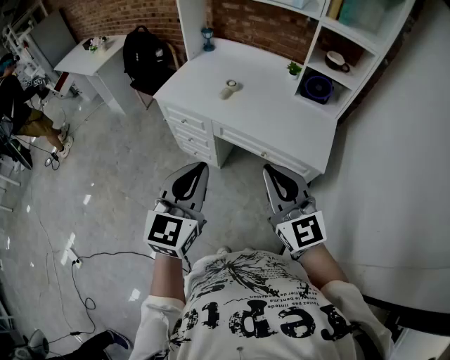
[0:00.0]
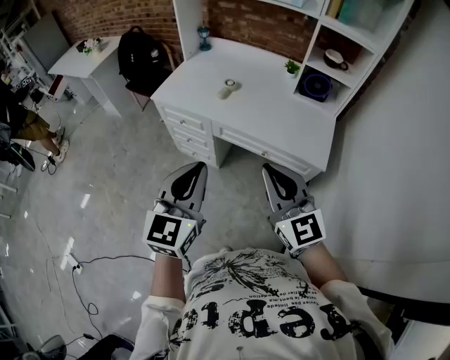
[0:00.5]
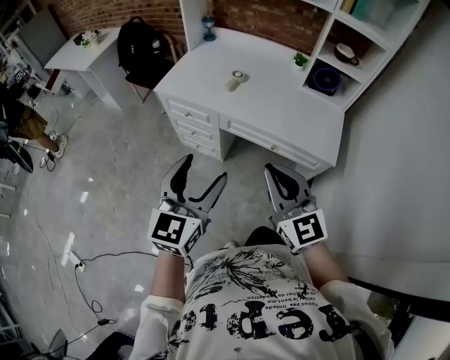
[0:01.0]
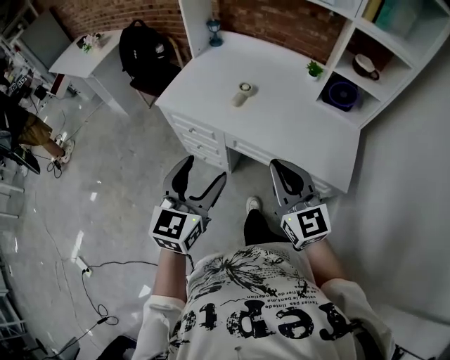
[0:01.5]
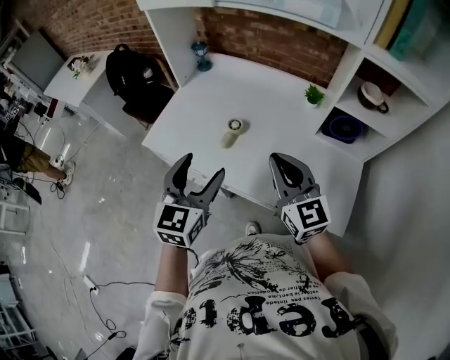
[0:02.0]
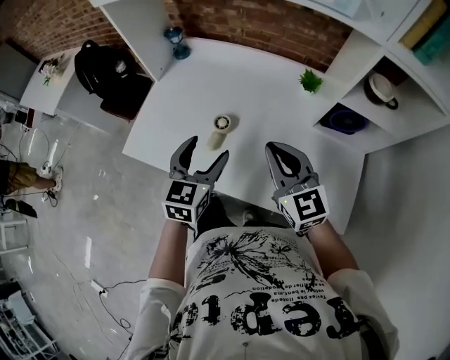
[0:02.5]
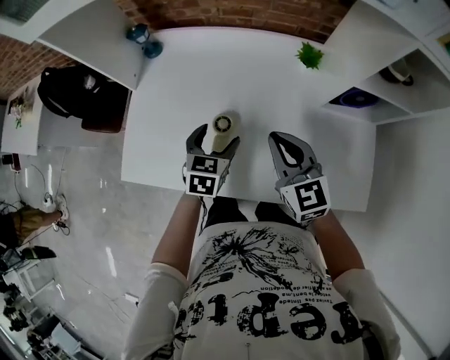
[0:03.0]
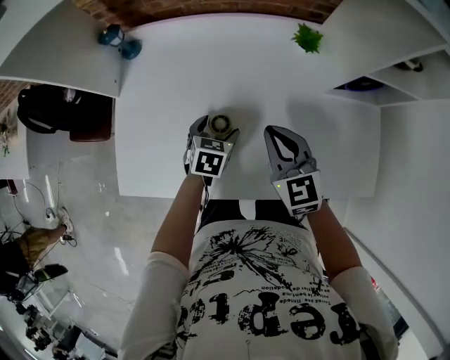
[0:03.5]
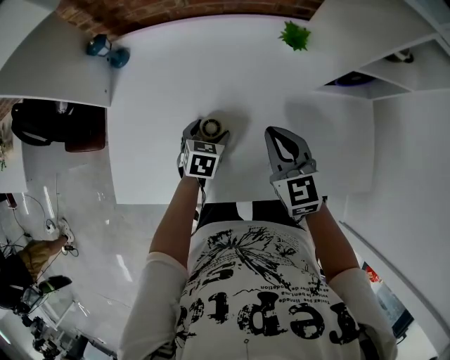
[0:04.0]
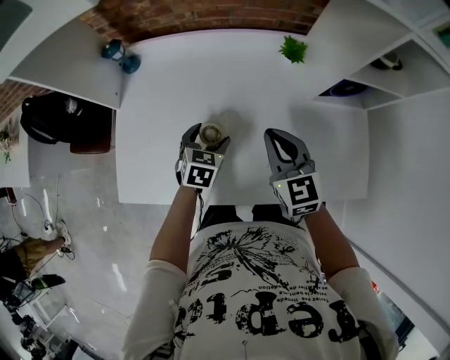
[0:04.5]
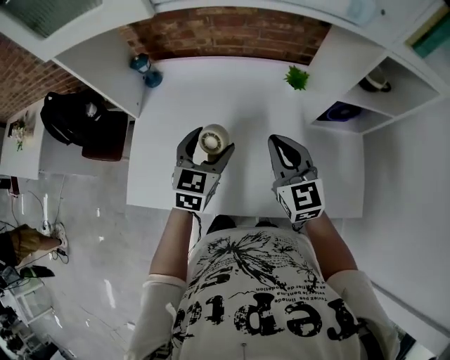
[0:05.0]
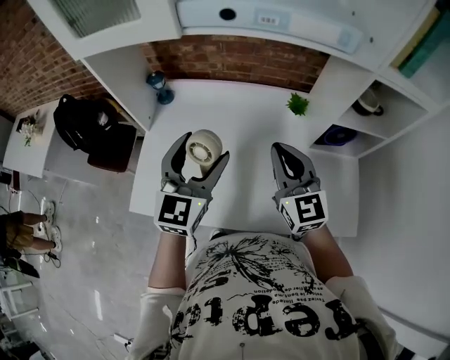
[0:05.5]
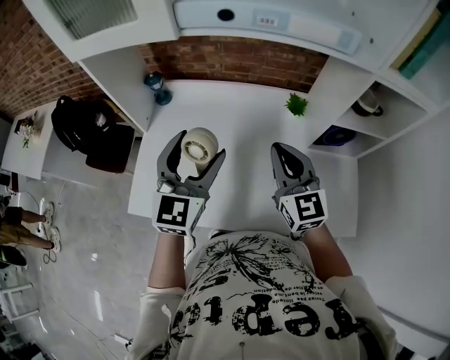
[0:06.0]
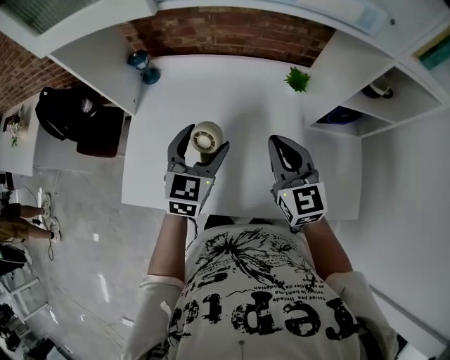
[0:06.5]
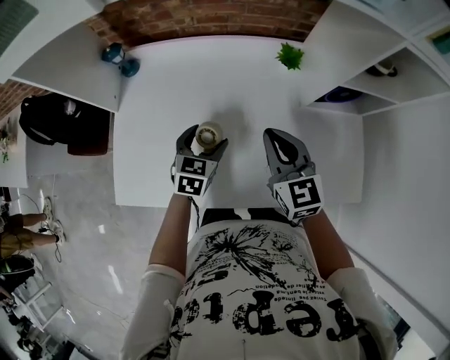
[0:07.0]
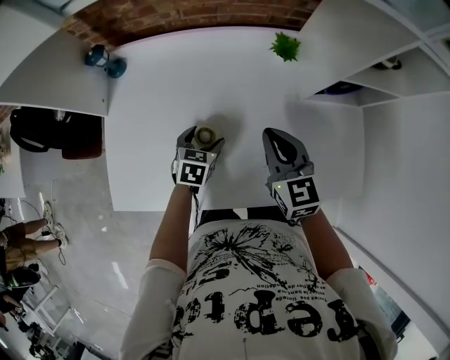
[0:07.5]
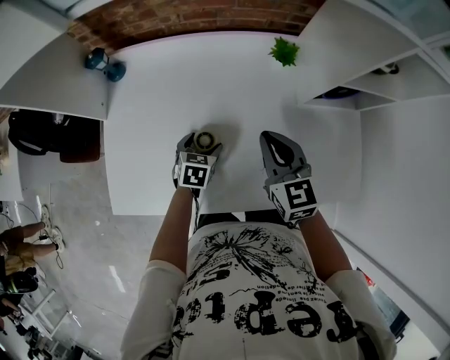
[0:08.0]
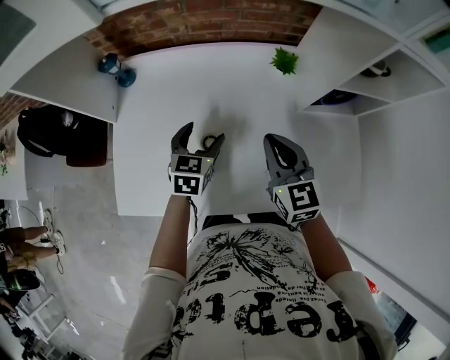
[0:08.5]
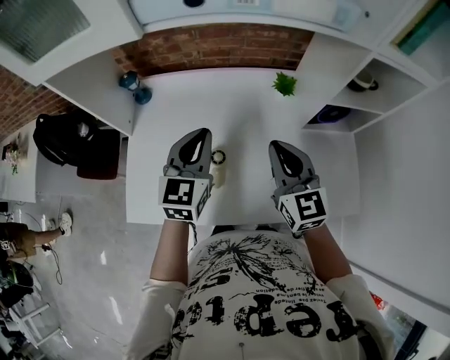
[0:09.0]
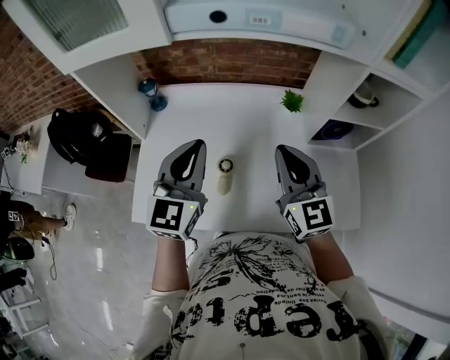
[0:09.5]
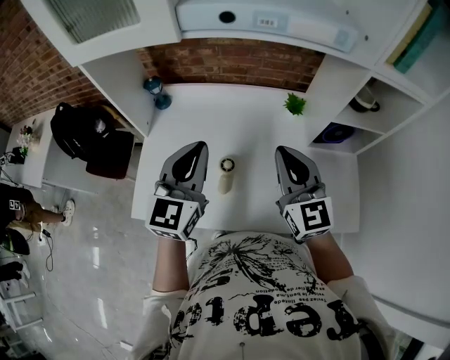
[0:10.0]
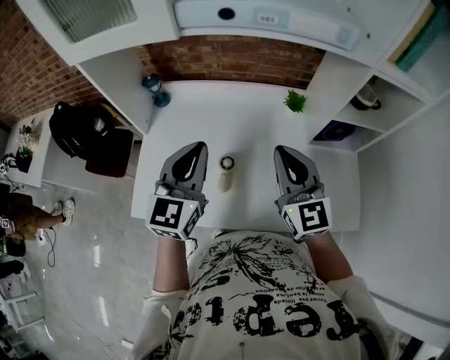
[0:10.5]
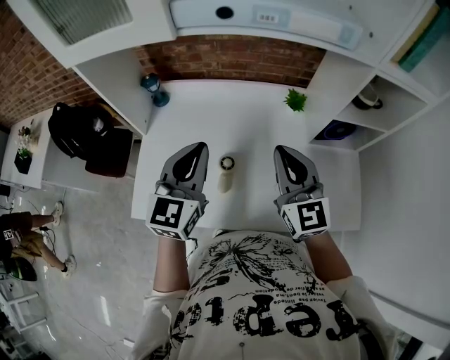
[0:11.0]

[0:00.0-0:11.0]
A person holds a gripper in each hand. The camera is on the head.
0:00.0 to 0:02.0: Both grippers travel together forward, about 40 cm. The left gripper opens its fingers.
0:02.0 to 0:03.5: The left gripper goes approximately 35 cm downward, and points its fingers about 40 degrees further downward, while the right gripper changes place by roughly 30 cm, and turns by some 30 degrees.
0:03.5 to 0:05.5: The left gripper goes about 35 cm upward, and angles its fingers upward, by about 50 degrees, while the right gripper is displaced upward by approximately 20 cm, and swivels approximately 20 degrees.
0:05.5 to 0:07.5: The right gripper goes about 15 cm downward, and turns by about 20 degrees; the left gripper heads downward, covering approximately 35 cm, and angles its fingers downward, by some 50 degrees.
0:07.5 to 0:09.0: The right gripper heads upward, covering about 10 cm. Meanwhile the left gripper moves upward, roughly 30 cm, tilts its fingers approximately 40 degrees upward, and closes.
0:09.0 to 0:11.0: The right gripper ends up approximately 5 cm from where it was, while the left gripper heads upward and backward, covering roughly 10 cm.

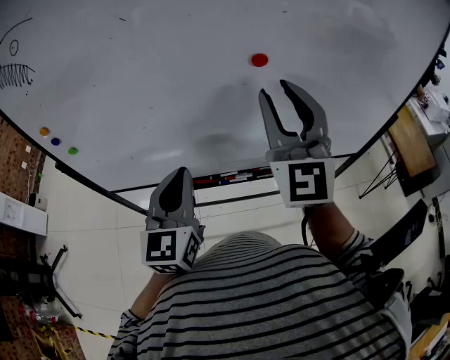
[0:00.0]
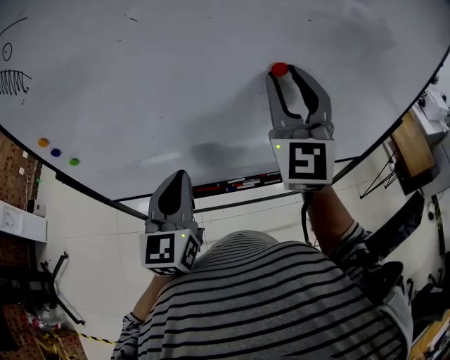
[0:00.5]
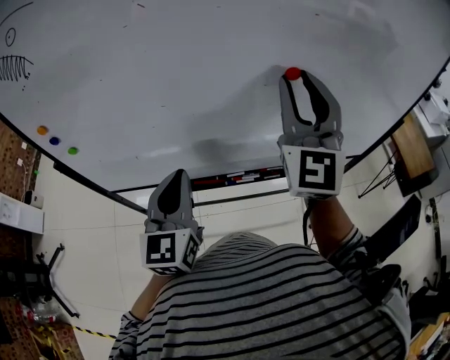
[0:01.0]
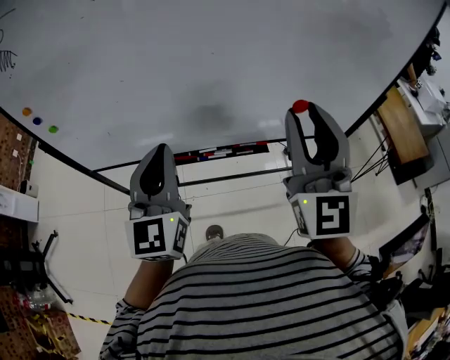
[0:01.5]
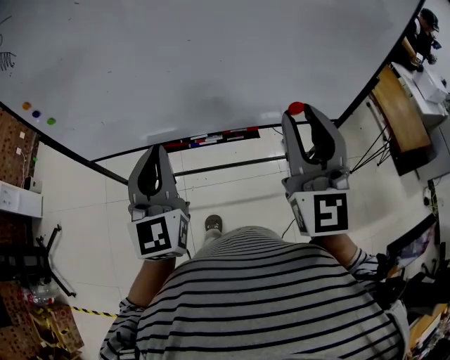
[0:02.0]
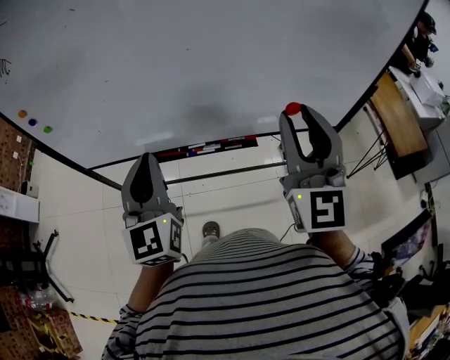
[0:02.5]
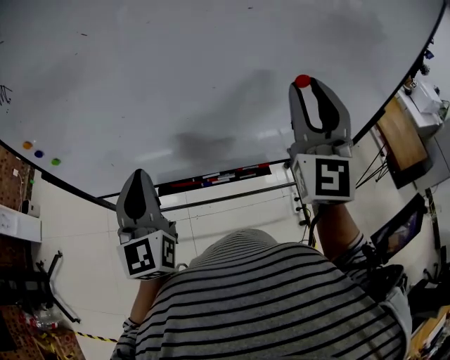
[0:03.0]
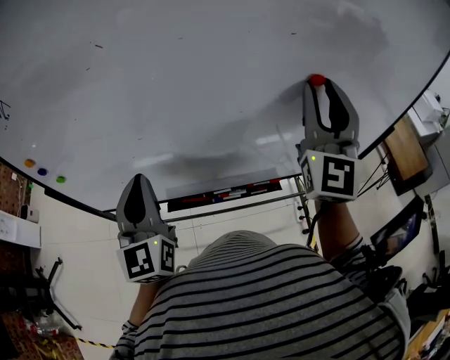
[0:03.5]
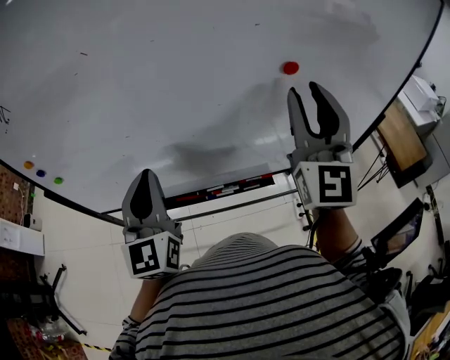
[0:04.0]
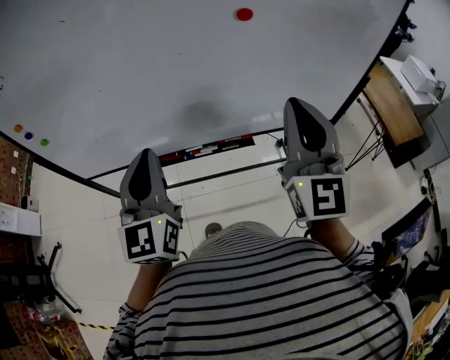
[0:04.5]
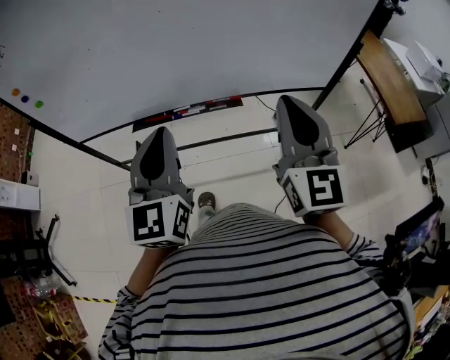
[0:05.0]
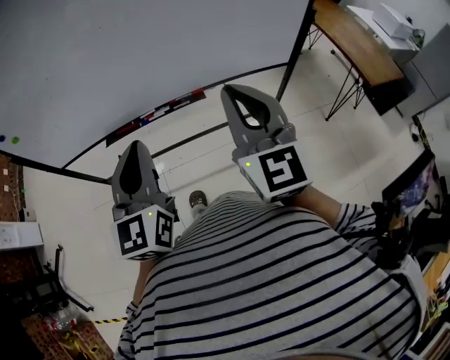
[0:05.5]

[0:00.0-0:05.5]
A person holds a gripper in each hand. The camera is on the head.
0:00.0 to 0:02.0: The right gripper is displaced backward and to the right by some 20 cm. Meanwhile the left gripper moves backward and to the right, approximately 10 cm.
0:02.0 to 0:03.5: The left gripper is displaced forward and to the left by approximately 20 cm; the right gripper shifts approximately 20 cm forward.
0:03.5 to 0:05.5: The right gripper shifts about 30 cm backward and downward, turns by roughly 30 degrees, and closes. Meanwhile the left gripper shifts approximately 30 cm to the right and backward.

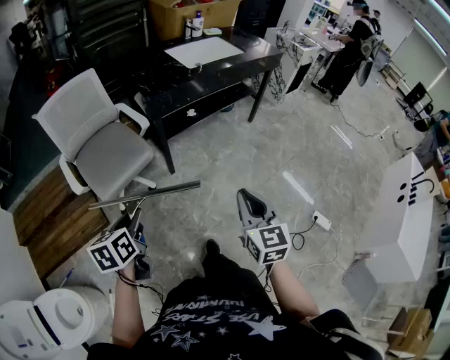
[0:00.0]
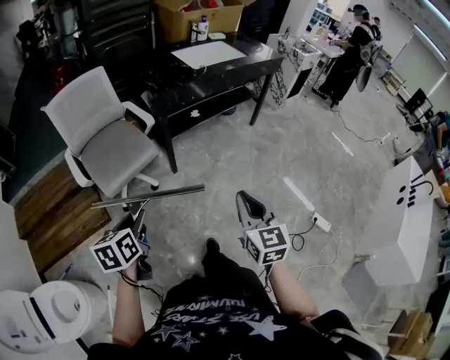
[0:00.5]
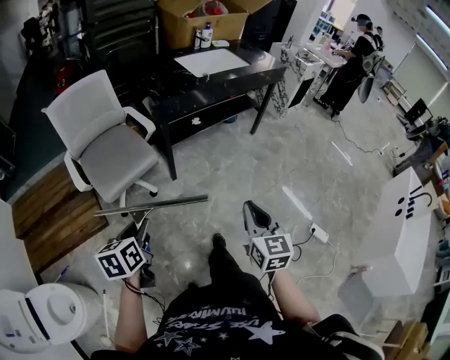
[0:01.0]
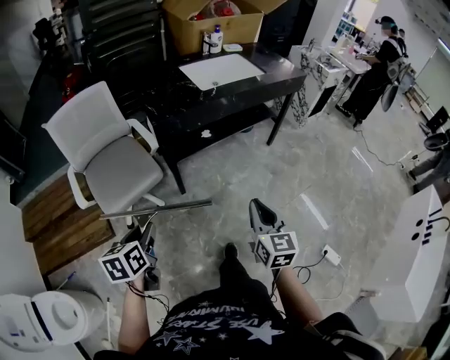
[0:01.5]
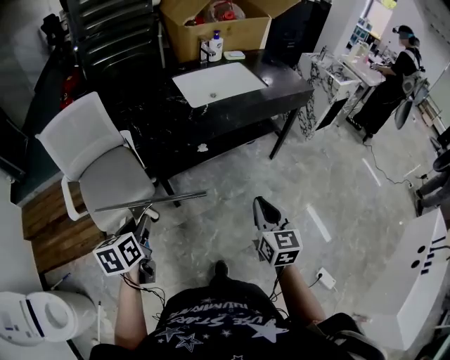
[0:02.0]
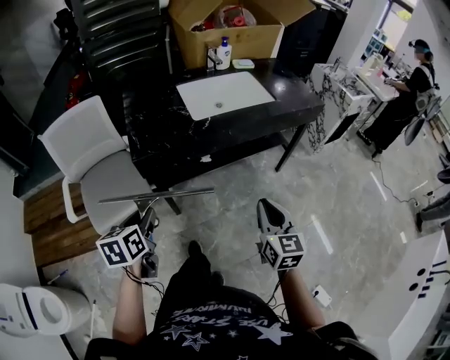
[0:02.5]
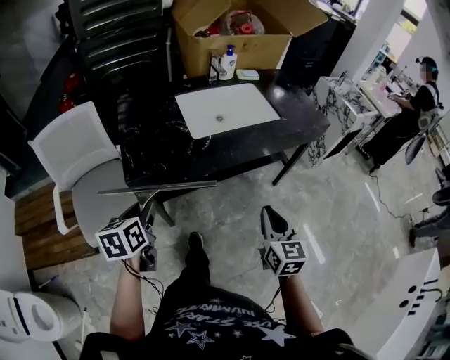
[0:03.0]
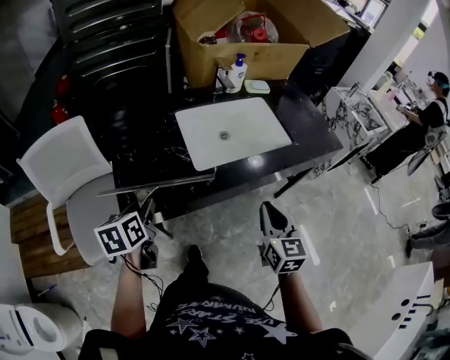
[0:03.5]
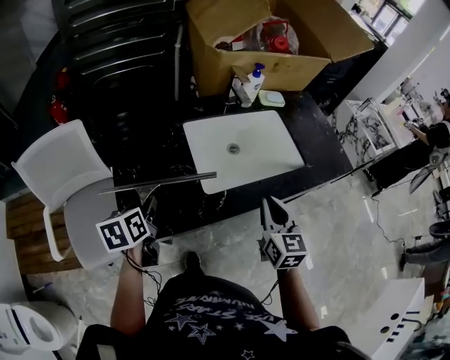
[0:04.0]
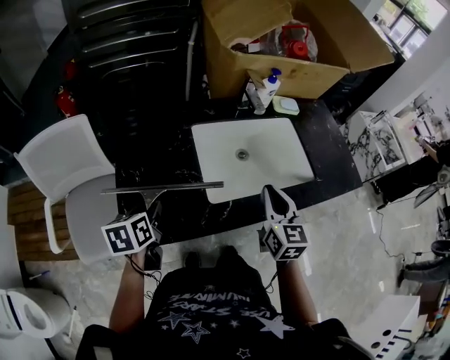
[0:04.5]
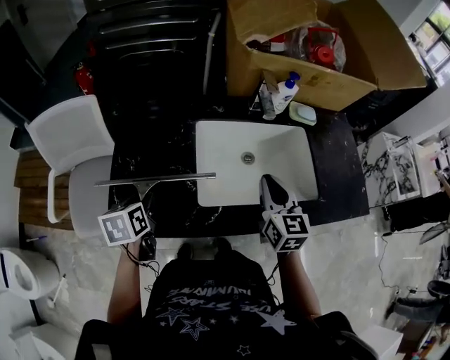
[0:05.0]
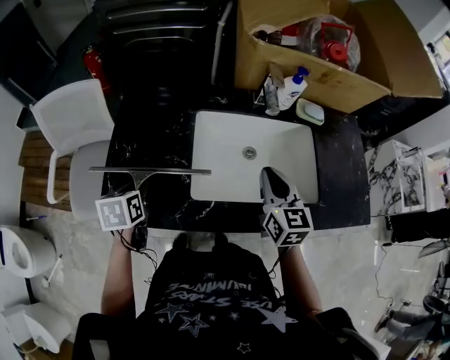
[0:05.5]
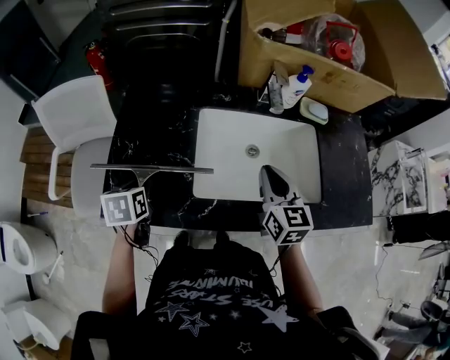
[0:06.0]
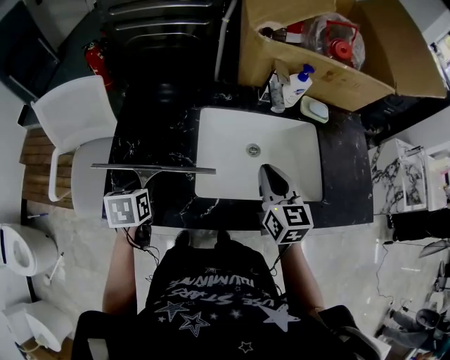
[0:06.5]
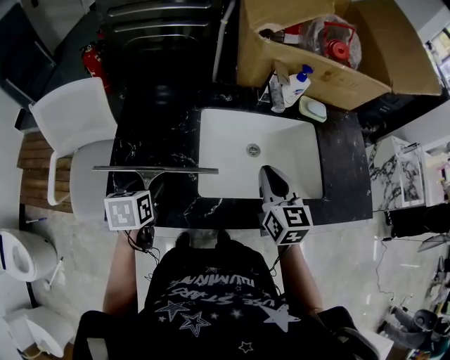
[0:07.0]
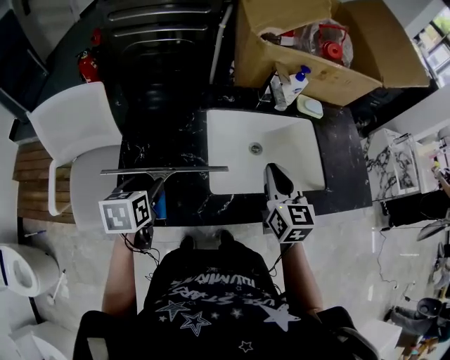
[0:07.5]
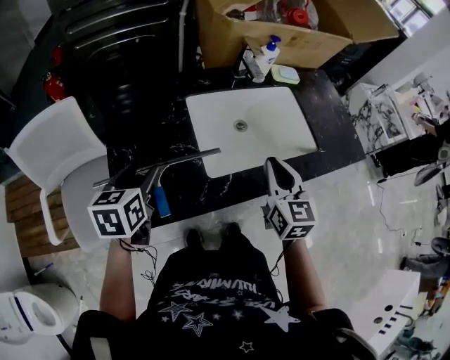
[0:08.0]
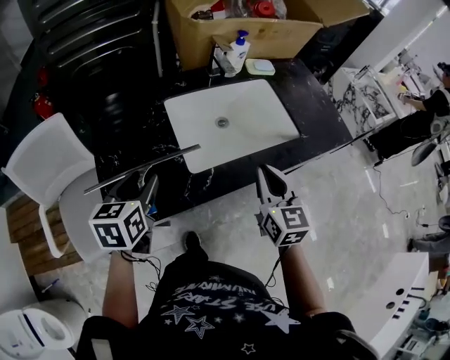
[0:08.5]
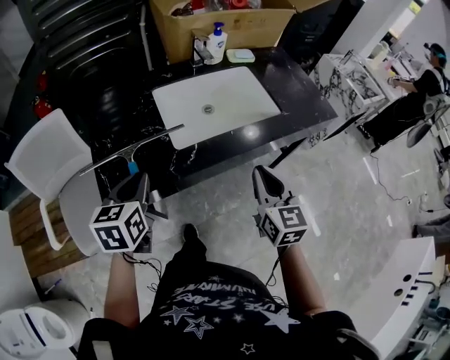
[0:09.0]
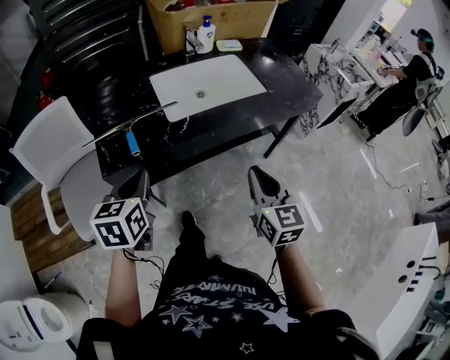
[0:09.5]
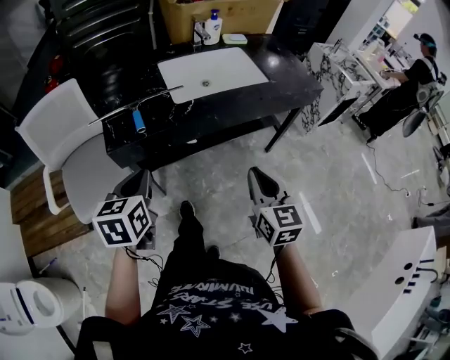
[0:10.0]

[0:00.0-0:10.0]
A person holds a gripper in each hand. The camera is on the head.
0:00.0 to 0:02.0: The two grippers go roughly 30 cm forward and to the right.
0:02.0 to 0:04.0: Both grippers are carried forward, roughly 50 cm.
0:04.0 to 0:06.0: The left gripper moves downward, approximately 5 cm, and swivels about 20 degrees. Meanwhile the right gripper shifts approximately 20 cm forward, and rotates roughly 20 degrees.
0:06.0 to 0:08.0: The right gripper moves backward, some 10 cm, and rotates roughly 20 degrees, while the left gripper is displaced upward by approximately 10 cm, swivels about 30 degrees, and opens up.
0:08.0 to 0:10.0: The grippers both shift backward by some 40 cm. The left gripper closes its fingers.
